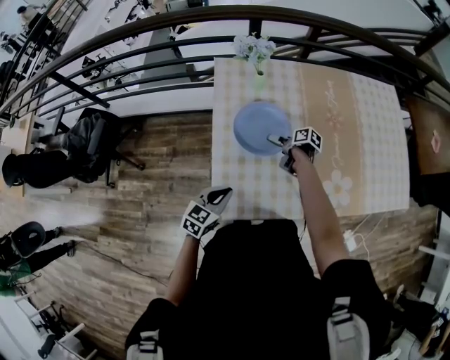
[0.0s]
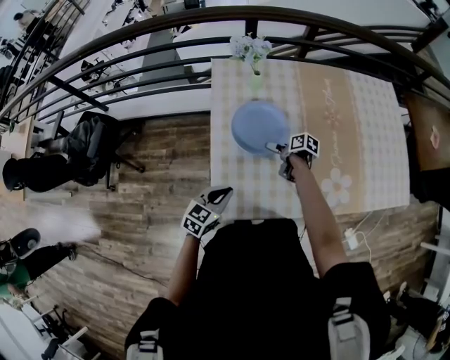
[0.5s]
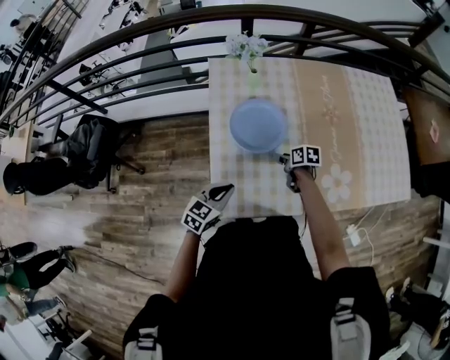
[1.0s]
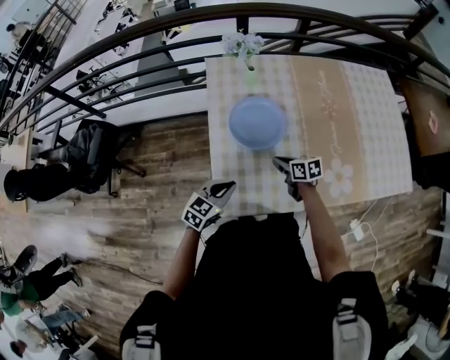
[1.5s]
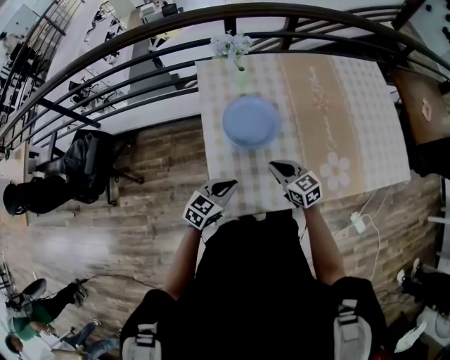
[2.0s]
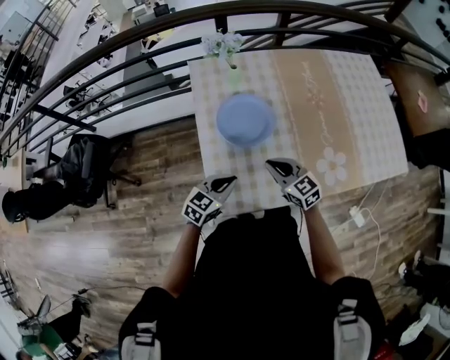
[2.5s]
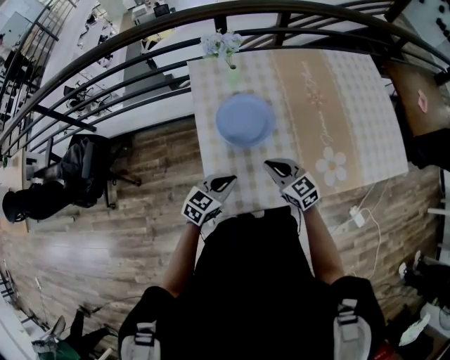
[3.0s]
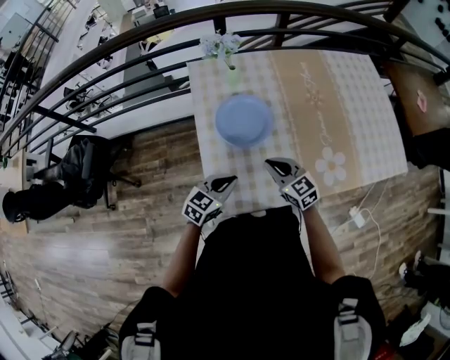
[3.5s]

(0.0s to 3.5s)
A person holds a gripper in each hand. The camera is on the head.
0.0s - 2.0s: The right gripper moves backward and upward, about 15 cm, rolls counterclockwise, seen from behind, by about 70 degrees, and closes up.
2.0s - 3.5s: The grippers move only a little.

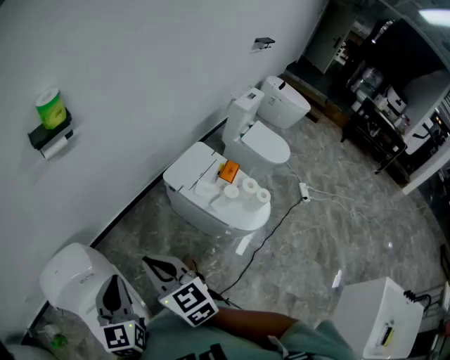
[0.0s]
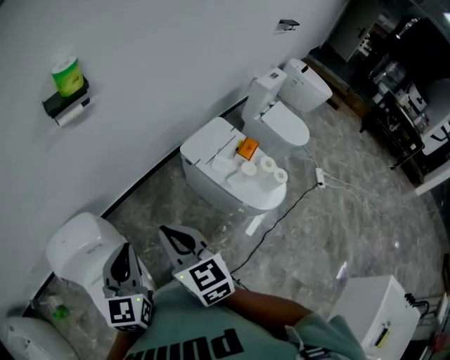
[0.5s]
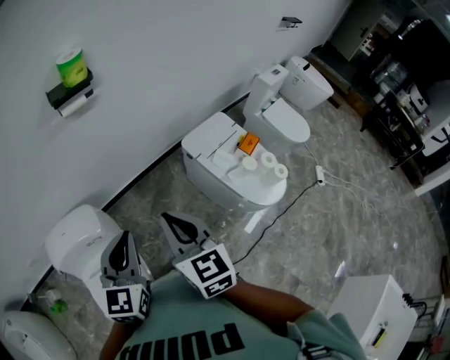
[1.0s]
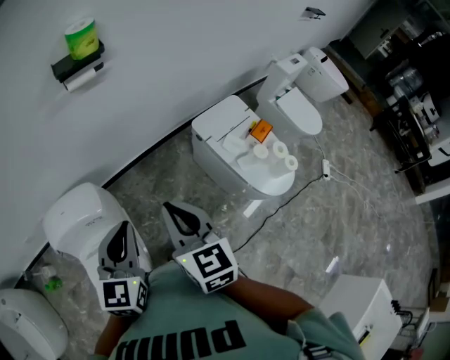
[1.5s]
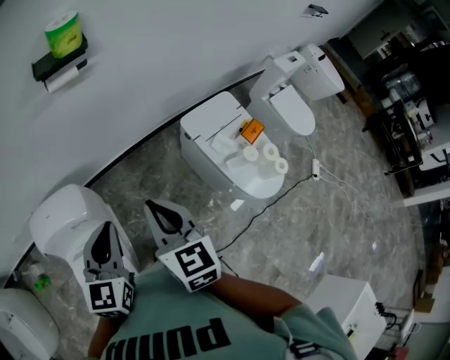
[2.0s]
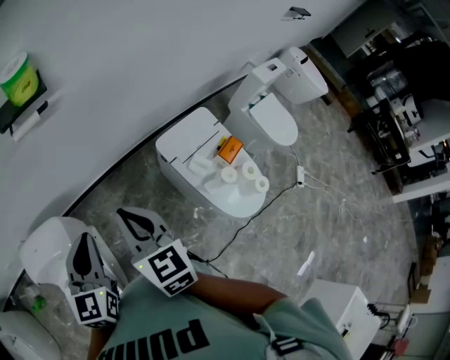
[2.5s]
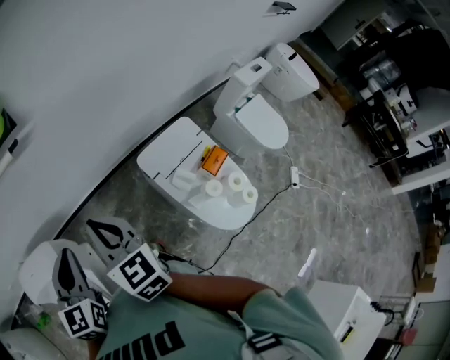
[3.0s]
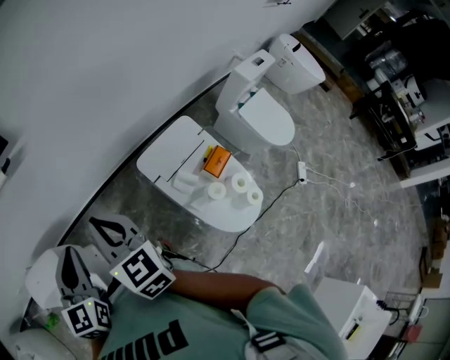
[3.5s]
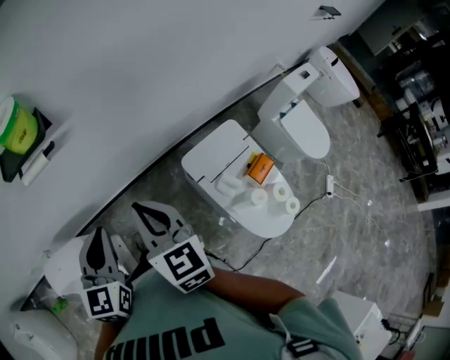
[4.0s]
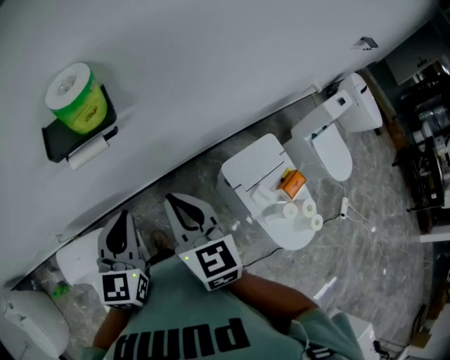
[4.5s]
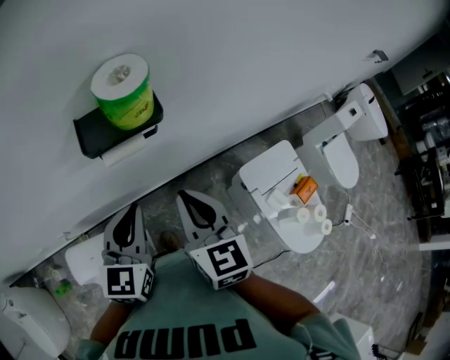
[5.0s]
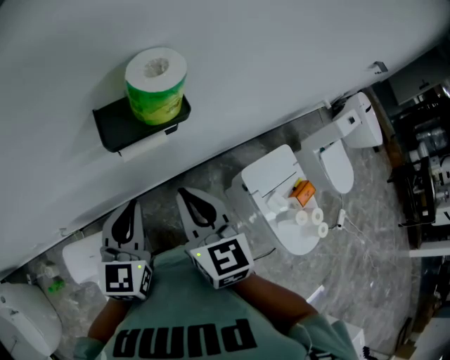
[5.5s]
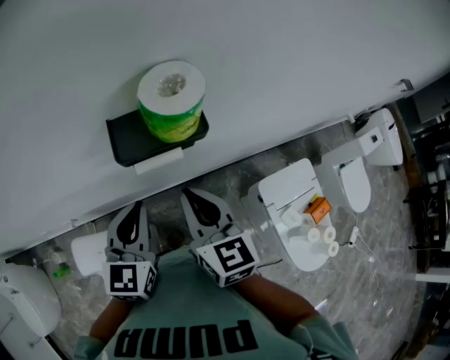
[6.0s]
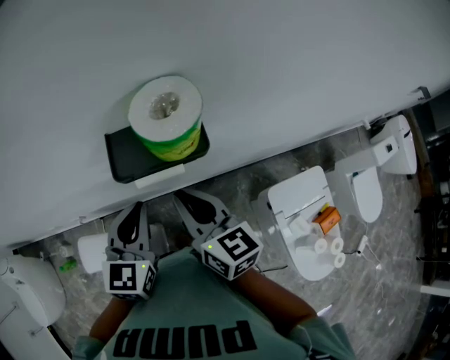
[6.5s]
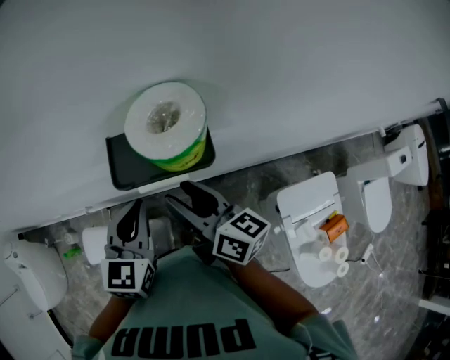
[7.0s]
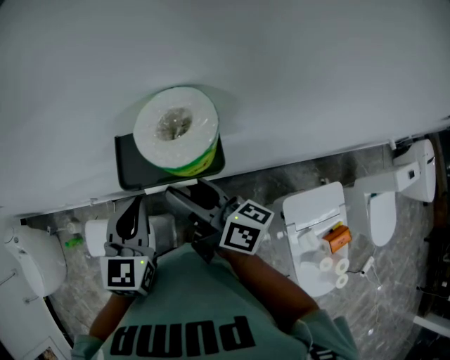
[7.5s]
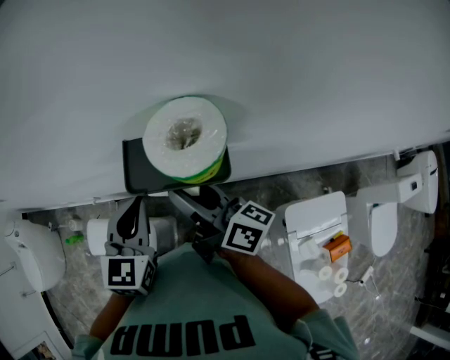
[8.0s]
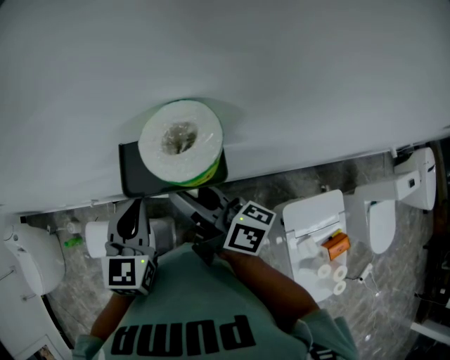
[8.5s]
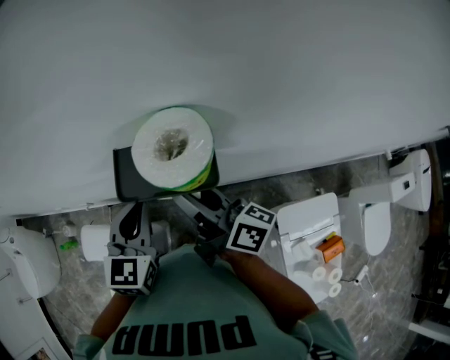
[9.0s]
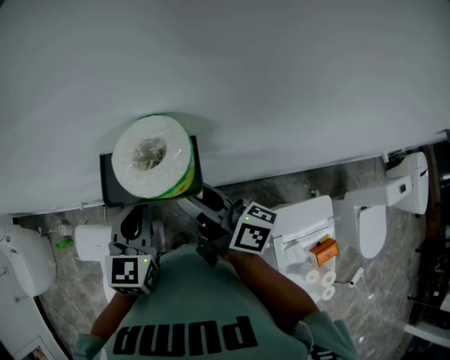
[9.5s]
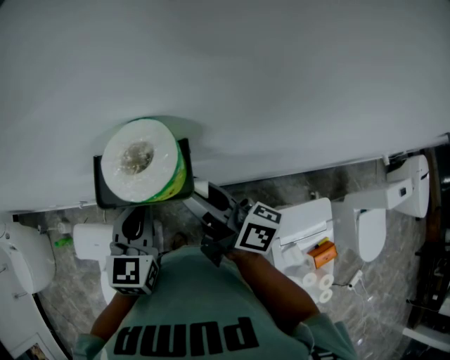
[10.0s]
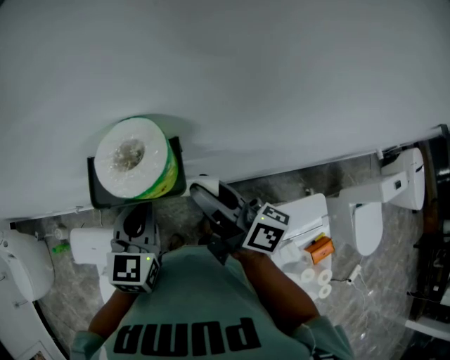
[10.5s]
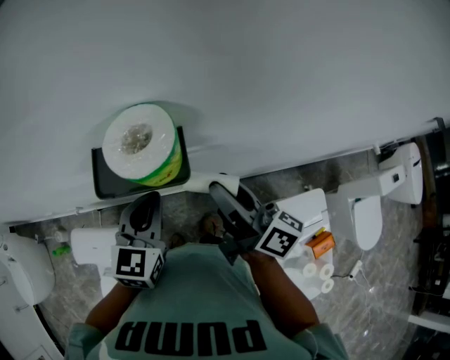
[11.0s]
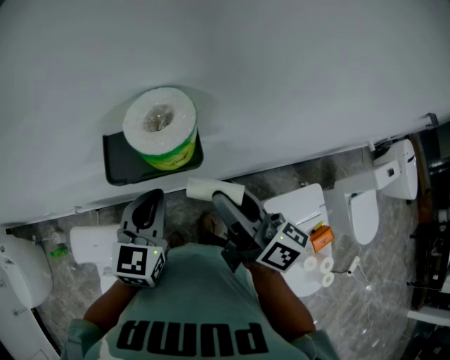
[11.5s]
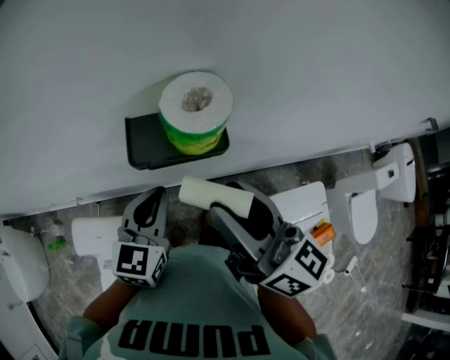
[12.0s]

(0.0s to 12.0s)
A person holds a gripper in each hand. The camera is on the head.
0.0s - 2.0s: The grippers both shift forward by about 5 cm.
2.0s - 4.0s: Both grippers move forward and to the right, roughly 25 cm.
4.0s - 6.0s: The two grippers go roughly 25 cm to the left and forward.
6.0s - 8.0s: The grippers both shift forward by roughly 5 cm. The right gripper turns by roughly 60 degrees, and opens.
8.0s - 10.0s: The two grippers go roughly 5 cm to the right.
10.0s - 12.0s: The right gripper moves upward and backward, approximately 15 cm, and turns by approximately 30 degrees.

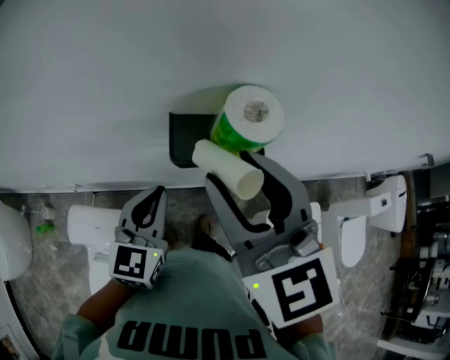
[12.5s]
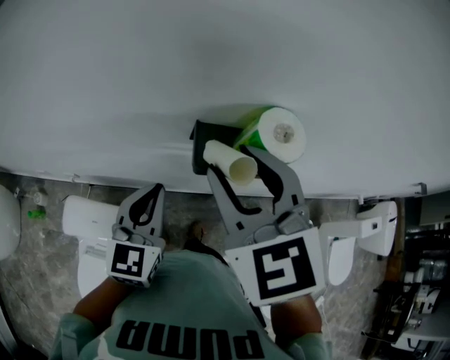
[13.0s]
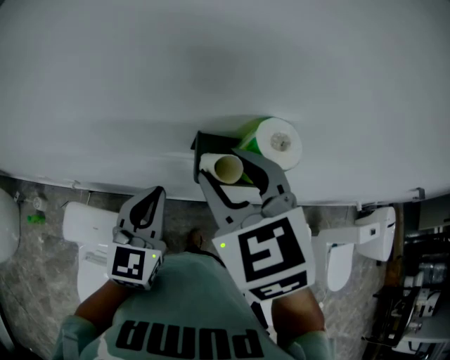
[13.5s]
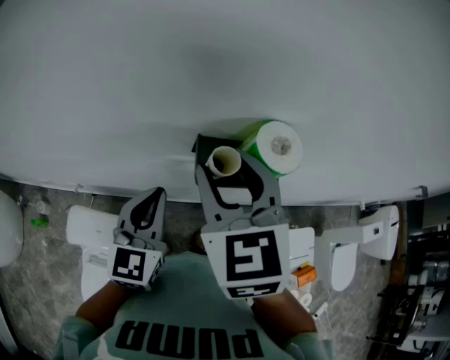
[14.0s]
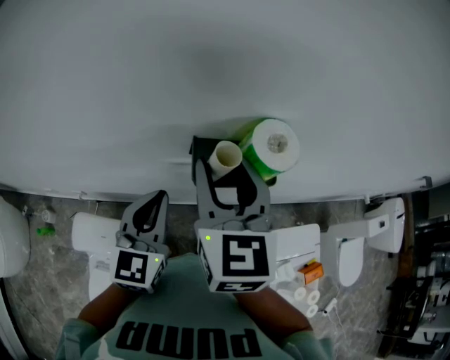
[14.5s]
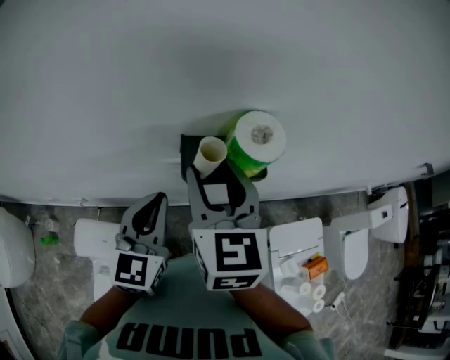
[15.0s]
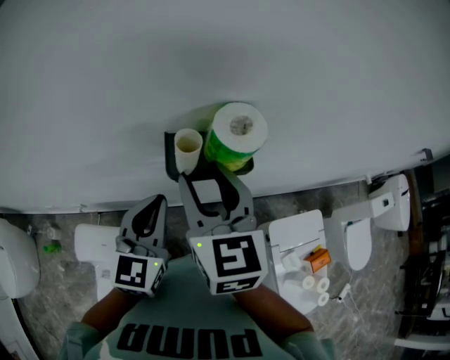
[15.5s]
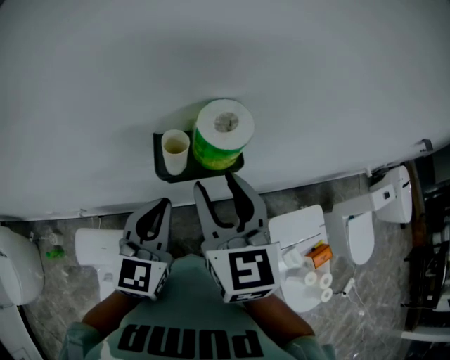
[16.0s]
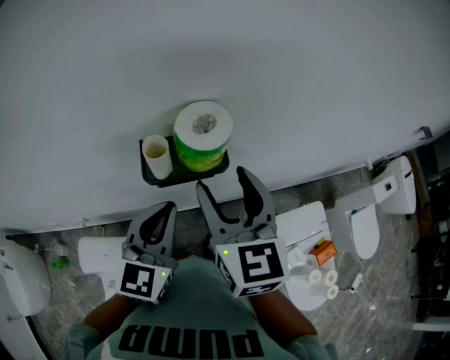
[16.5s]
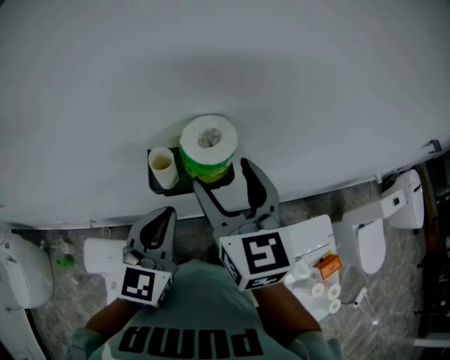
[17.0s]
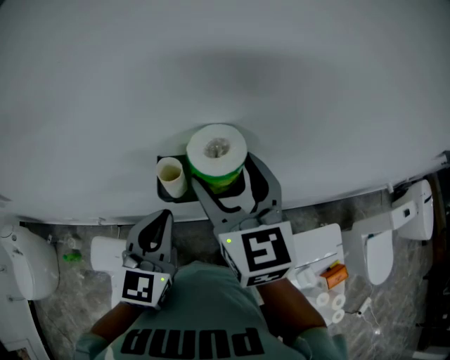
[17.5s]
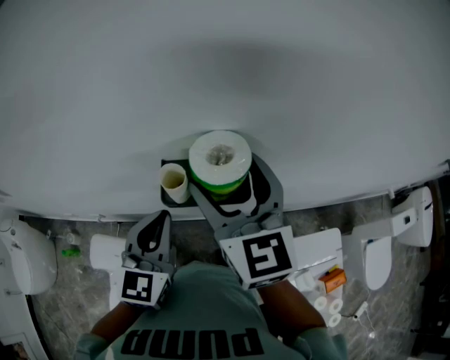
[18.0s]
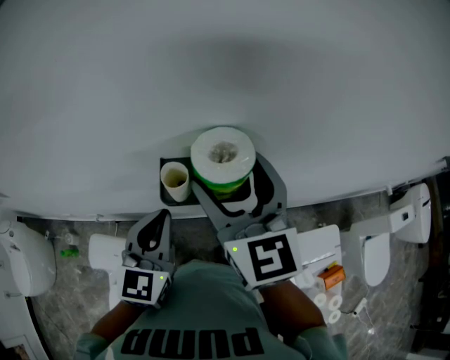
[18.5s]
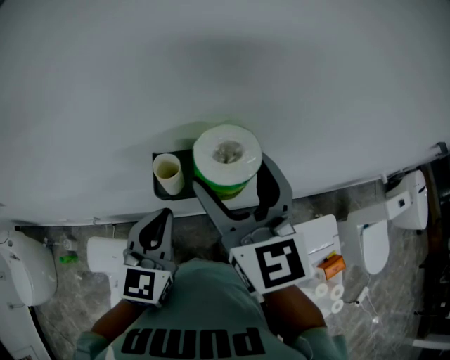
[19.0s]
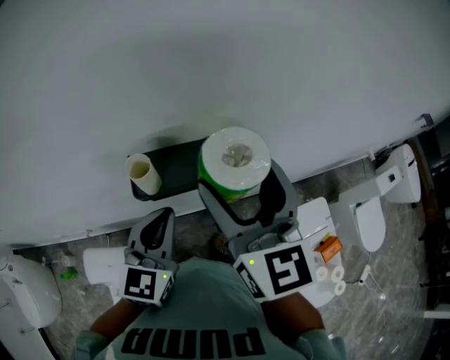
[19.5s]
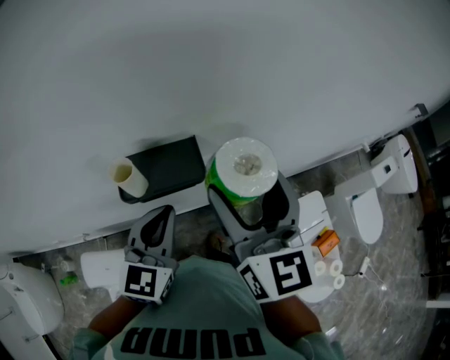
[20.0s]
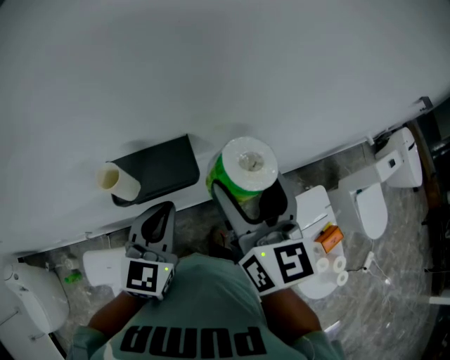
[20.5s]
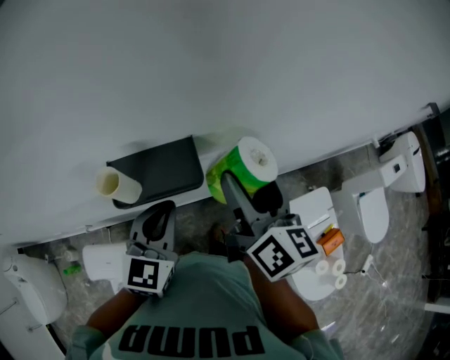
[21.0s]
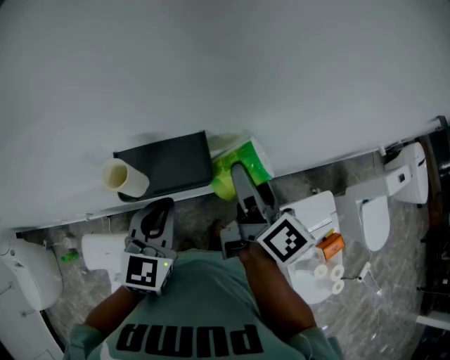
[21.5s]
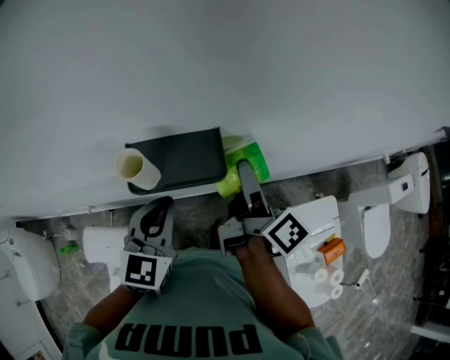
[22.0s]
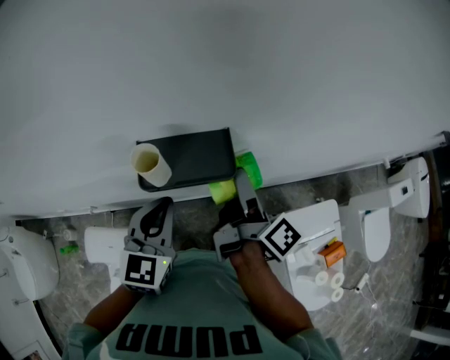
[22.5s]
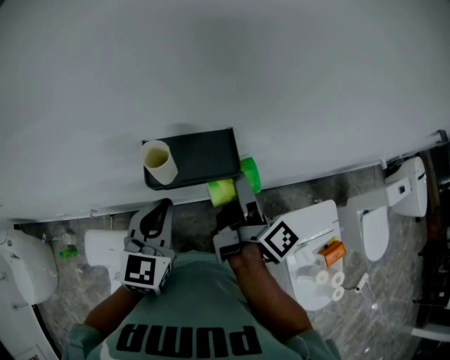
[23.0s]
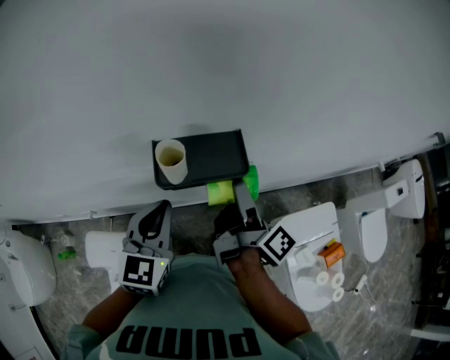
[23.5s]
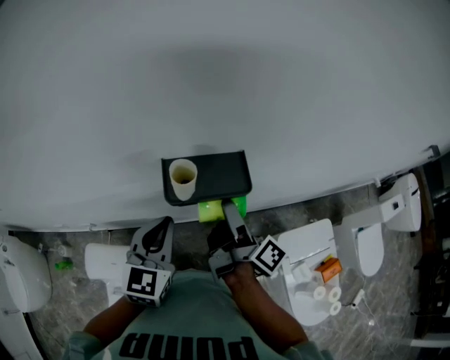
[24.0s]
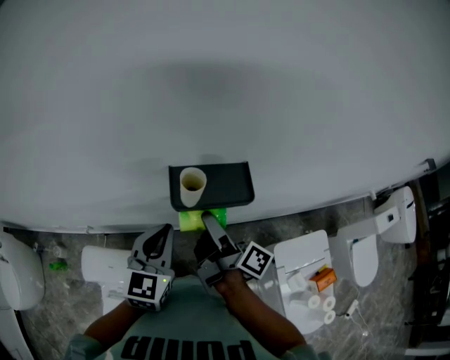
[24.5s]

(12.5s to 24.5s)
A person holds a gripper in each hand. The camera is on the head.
12.5s - 14.5s: The left gripper changes place by approximately 5 cm, while the right gripper goes some 5 cm forward.
14.5s - 16.5s: Both grippers move to the right, roughly 10 cm.
16.5s - 18.5s: The right gripper travels forward by about 5 cm. Meanwhile the left gripper changes place by approximately 5 cm.
18.5s - 20.5s: Both grippers travel together to the right, approximately 10 cm. The right gripper turns by about 20 degrees.
20.5s - 22.5s: The left gripper travels to the left by approximately 5 cm, while the right gripper travels downward by approximately 10 cm, and rolls clockwise, seen from behind, by approximately 70 degrees.
22.5s - 24.5s: The right gripper moves to the left, roughly 10 cm. Meanwhile the left gripper changes place by some 5 cm.
